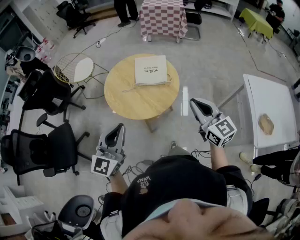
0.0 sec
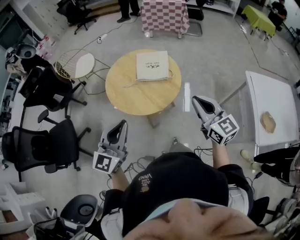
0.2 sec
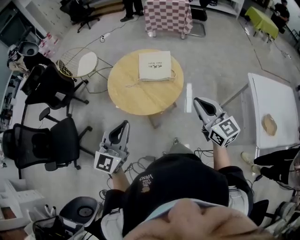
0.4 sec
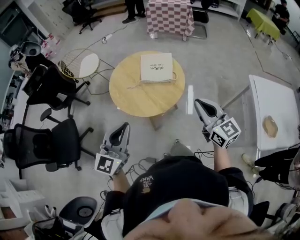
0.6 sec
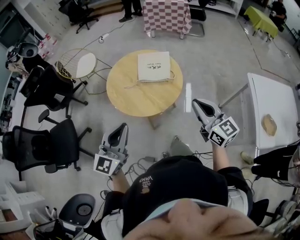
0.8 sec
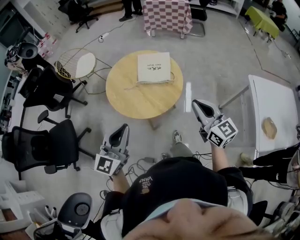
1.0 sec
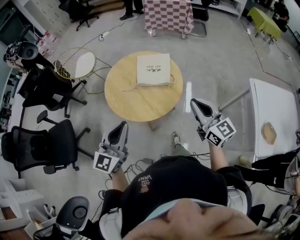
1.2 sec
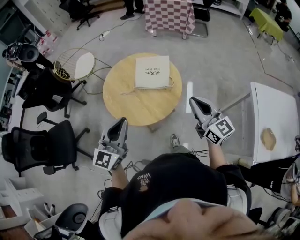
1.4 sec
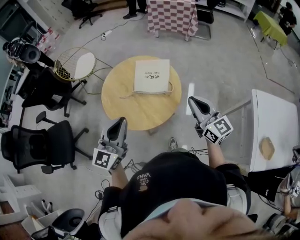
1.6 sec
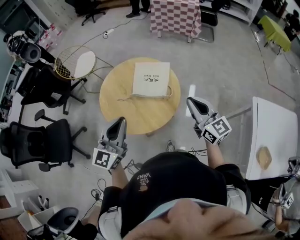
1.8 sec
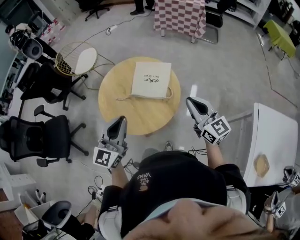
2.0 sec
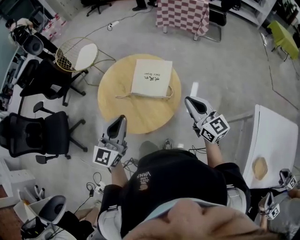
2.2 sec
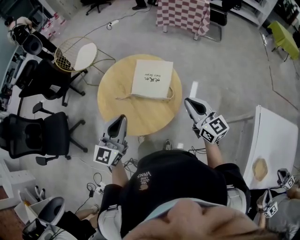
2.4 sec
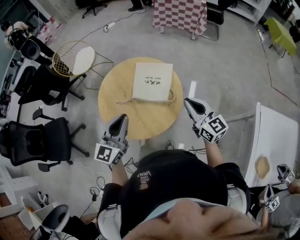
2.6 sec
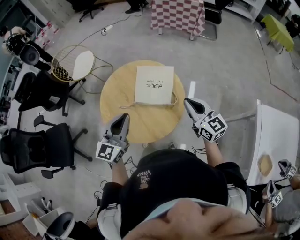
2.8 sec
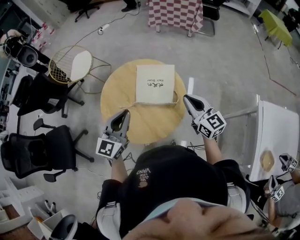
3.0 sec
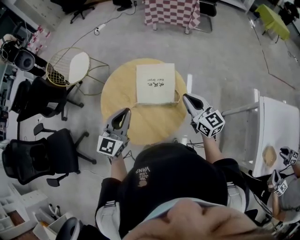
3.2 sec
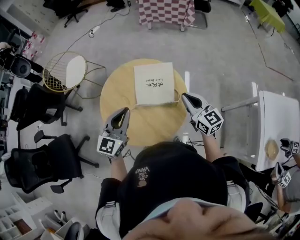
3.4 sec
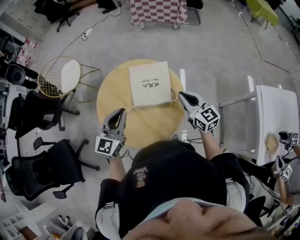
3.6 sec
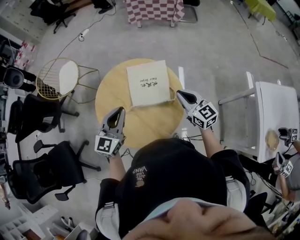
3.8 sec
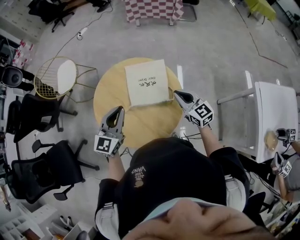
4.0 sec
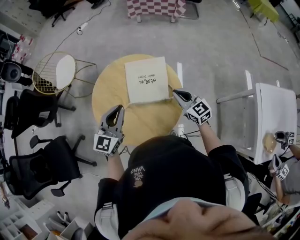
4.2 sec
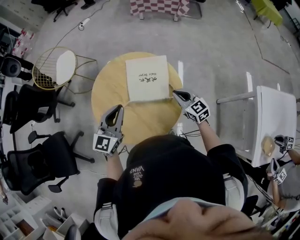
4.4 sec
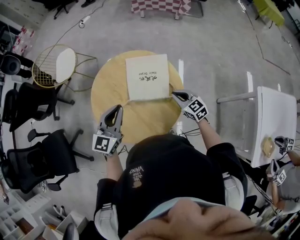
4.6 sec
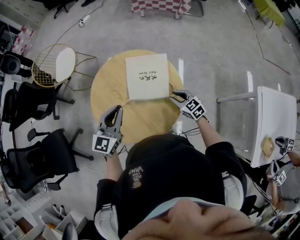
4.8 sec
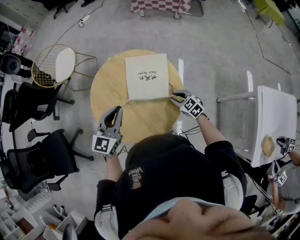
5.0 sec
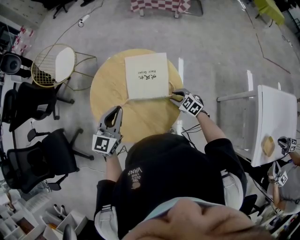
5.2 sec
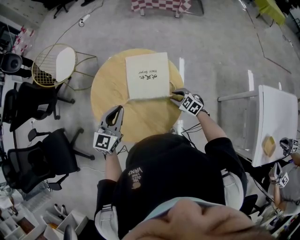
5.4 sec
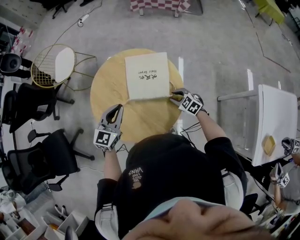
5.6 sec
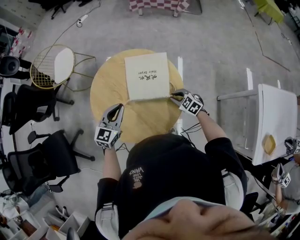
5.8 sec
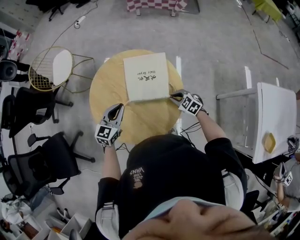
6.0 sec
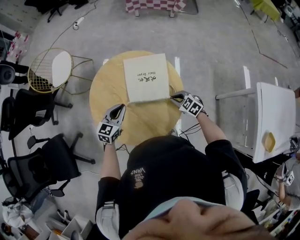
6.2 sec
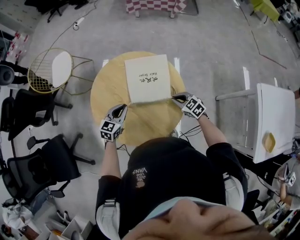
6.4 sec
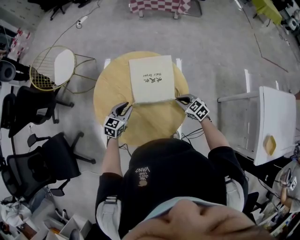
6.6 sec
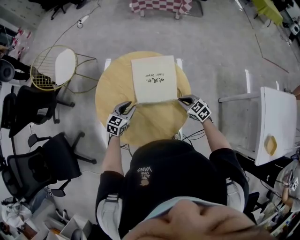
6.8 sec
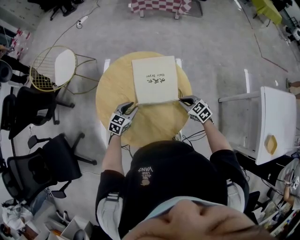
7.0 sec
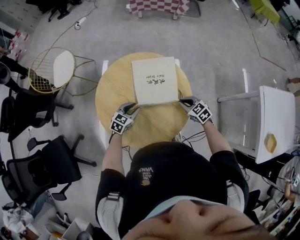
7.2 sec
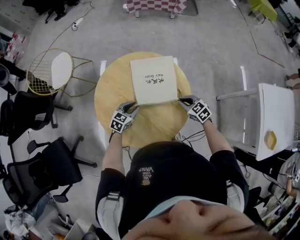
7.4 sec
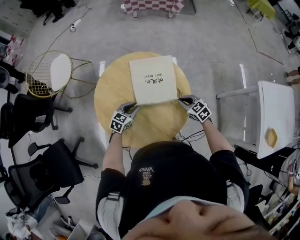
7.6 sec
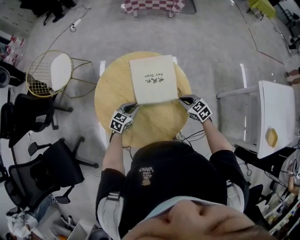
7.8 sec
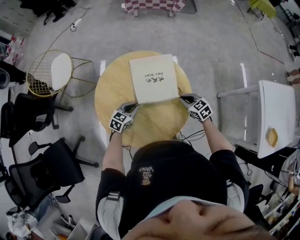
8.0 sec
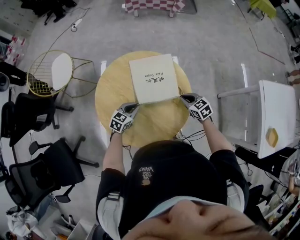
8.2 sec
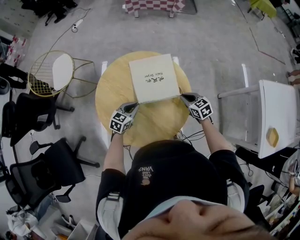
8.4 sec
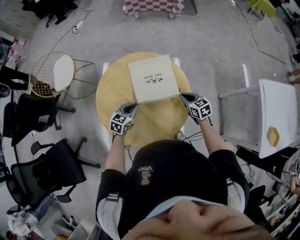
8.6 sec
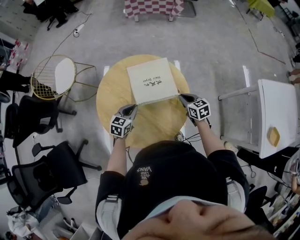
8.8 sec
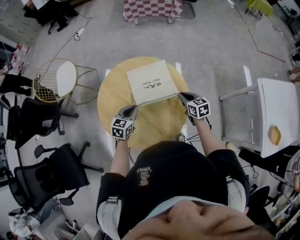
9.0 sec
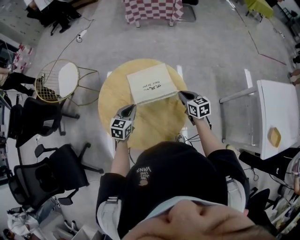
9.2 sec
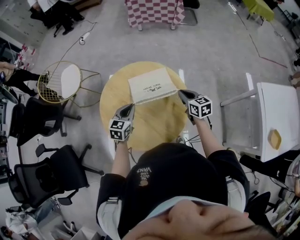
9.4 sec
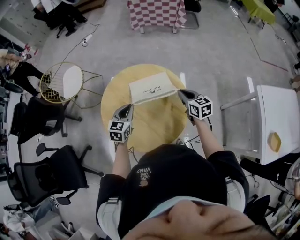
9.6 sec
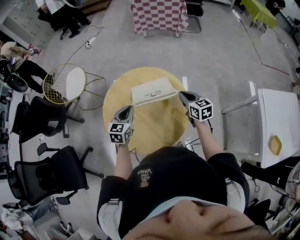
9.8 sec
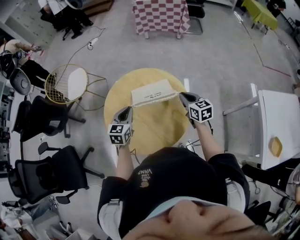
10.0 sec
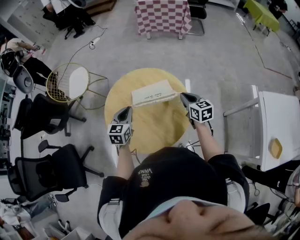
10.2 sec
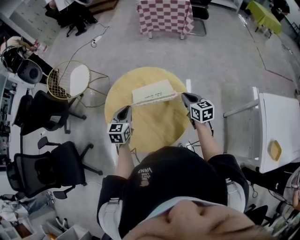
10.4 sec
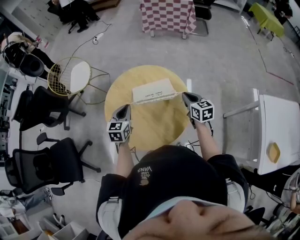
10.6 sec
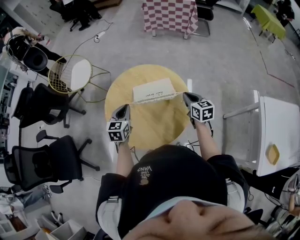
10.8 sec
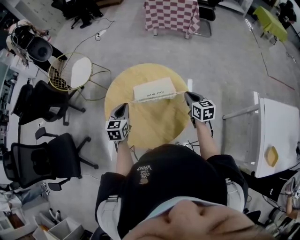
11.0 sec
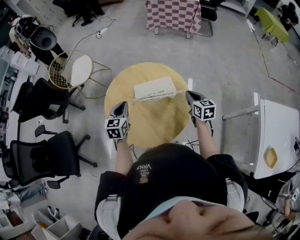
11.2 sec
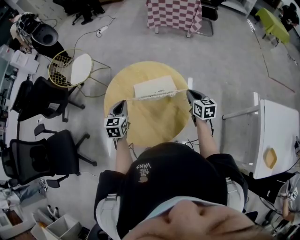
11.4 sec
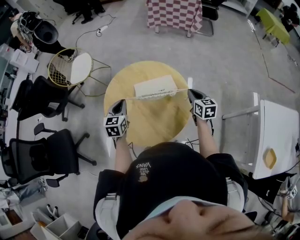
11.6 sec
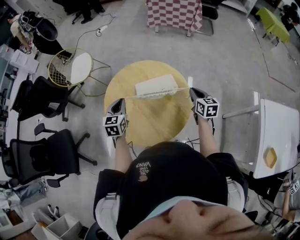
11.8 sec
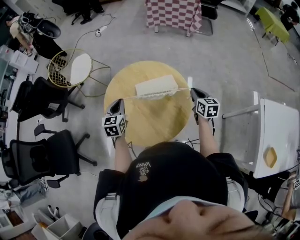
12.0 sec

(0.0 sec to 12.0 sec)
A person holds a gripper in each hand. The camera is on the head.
0.0 sec - 1.6 sec: Both grippers move forward, some 15 cm.
1.6 sec - 3.0 sec: The grippers both shift forward by some 15 cm.
3.0 sec - 4.4 sec: The right gripper heads downward, covering roughly 15 cm; the left gripper moves forward and downward, approximately 10 cm.
4.4 sec - 6.0 sec: Both grippers travel together downward, approximately 15 cm. The right gripper changes its angle by some 30 degrees, and opens and closes again.
6.0 sec - 7.6 sec: The left gripper goes approximately 15 cm downward, and turns by some 20 degrees.
7.6 sec - 9.0 sec: The left gripper travels upward by roughly 10 cm; the right gripper shifts some 5 cm upward, and changes its angle by approximately 30 degrees.
9.0 sec - 10.4 sec: Both grippers travel together upward, about 10 cm. The left gripper turns by some 20 degrees.
10.4 sec - 12.0 sec: The left gripper is displaced to the left by approximately 5 cm.

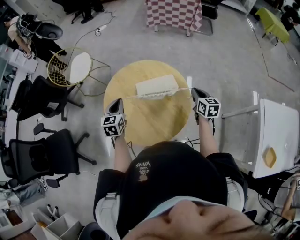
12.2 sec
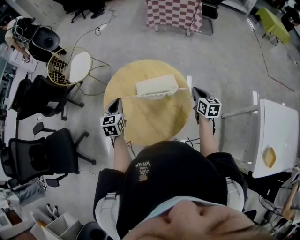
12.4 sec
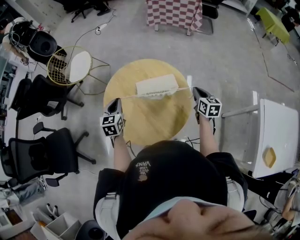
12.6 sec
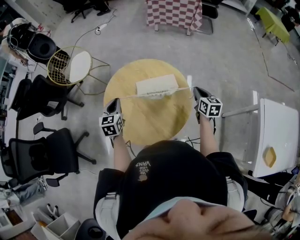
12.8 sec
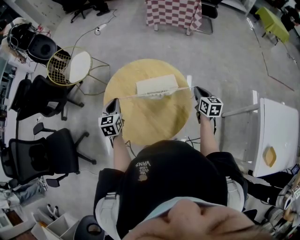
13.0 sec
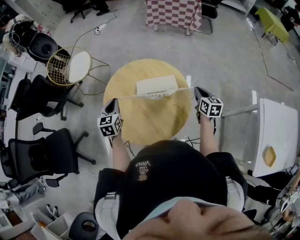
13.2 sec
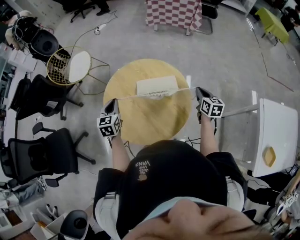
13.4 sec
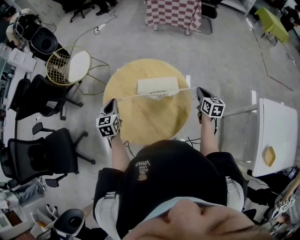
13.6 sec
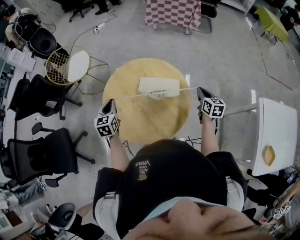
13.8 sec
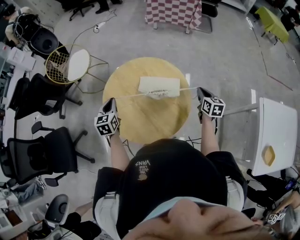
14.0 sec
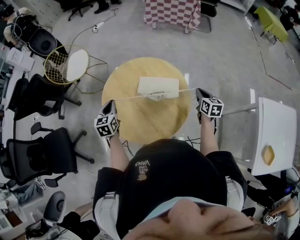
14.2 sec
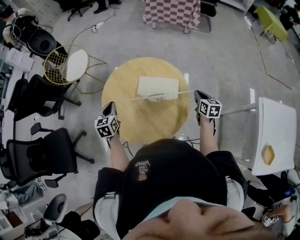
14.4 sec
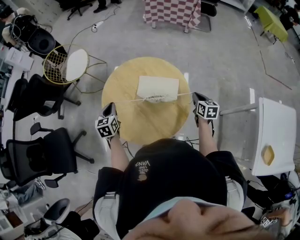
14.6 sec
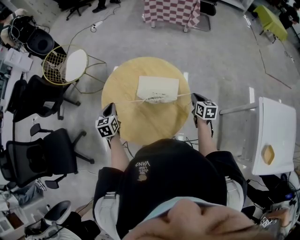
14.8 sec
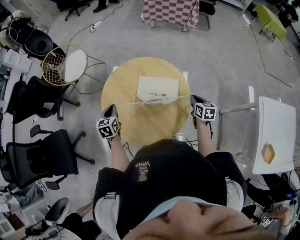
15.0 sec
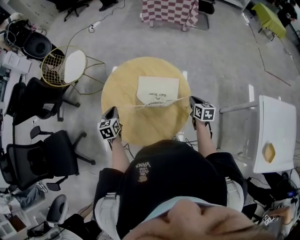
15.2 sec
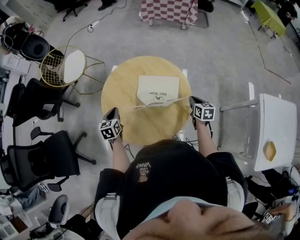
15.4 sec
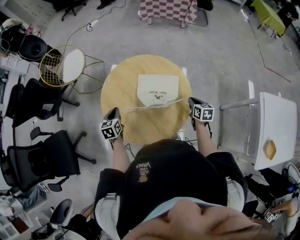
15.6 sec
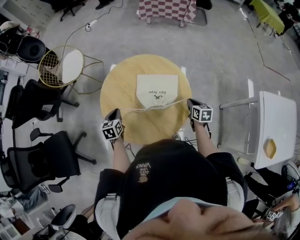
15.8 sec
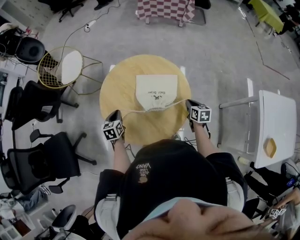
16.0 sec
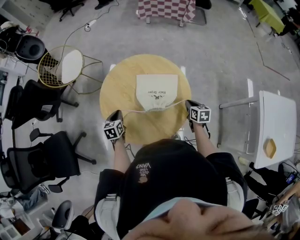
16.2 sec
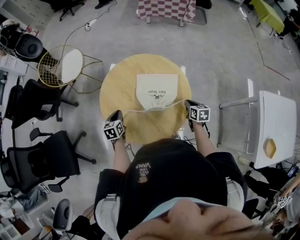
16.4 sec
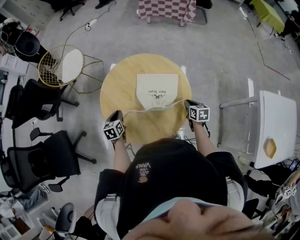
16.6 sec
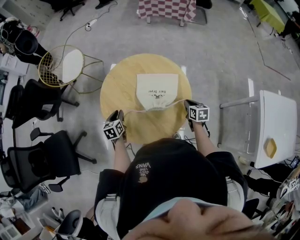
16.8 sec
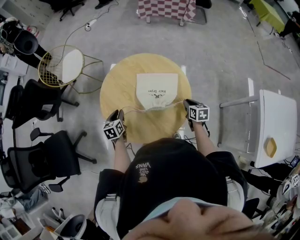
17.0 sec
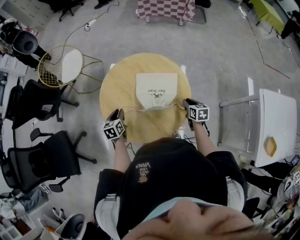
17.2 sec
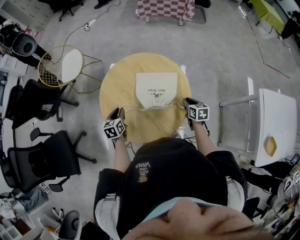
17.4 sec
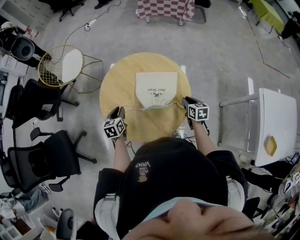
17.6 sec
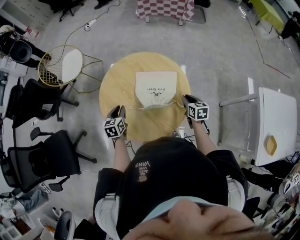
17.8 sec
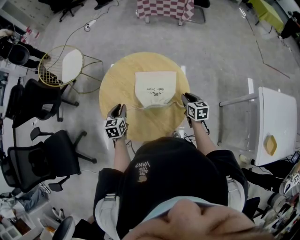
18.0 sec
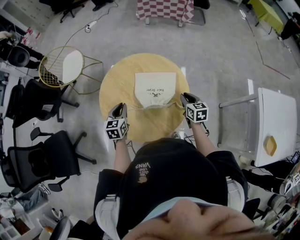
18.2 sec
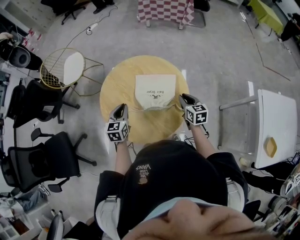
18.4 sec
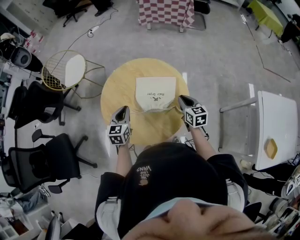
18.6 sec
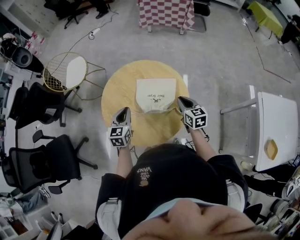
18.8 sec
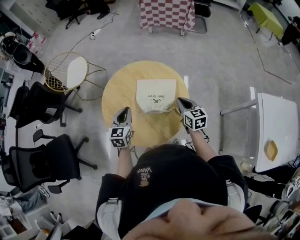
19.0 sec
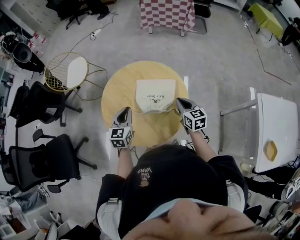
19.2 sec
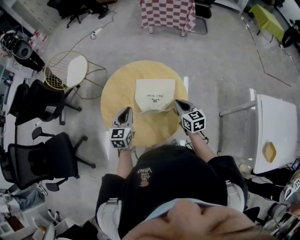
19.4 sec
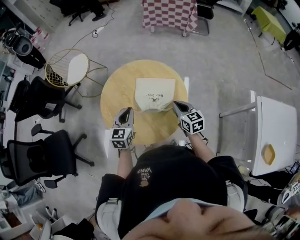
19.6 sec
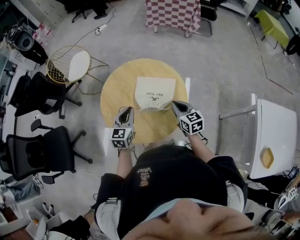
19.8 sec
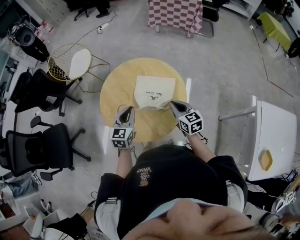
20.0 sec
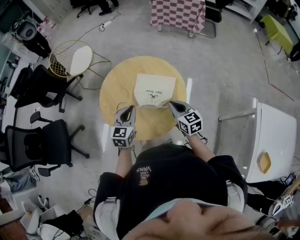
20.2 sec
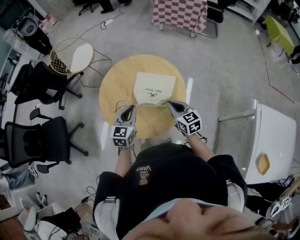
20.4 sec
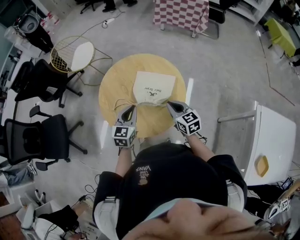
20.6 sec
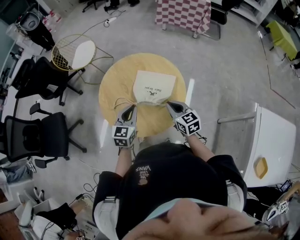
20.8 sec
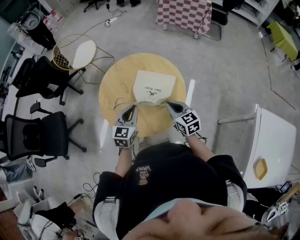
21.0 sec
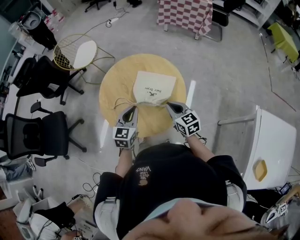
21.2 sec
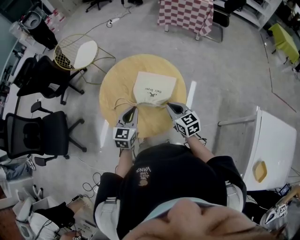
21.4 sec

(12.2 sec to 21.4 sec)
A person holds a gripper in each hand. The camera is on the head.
12.2 sec - 13.8 sec: The grippers make only small movements.
13.8 sec - 15.2 sec: Both grippers travel together downward, some 10 cm.
15.2 sec - 16.8 sec: The left gripper moves downward, about 5 cm. The right gripper shifts by about 5 cm.
16.8 sec - 18.4 sec: The left gripper travels upward and to the right by approximately 10 cm, and changes its angle by approximately 20 degrees. The right gripper heads upward, covering approximately 10 cm.
18.4 sec - 19.8 sec: The right gripper ends up some 5 cm from where it was; the left gripper heads to the right and upward, covering approximately 10 cm.
19.8 sec - 21.4 sec: The left gripper ends up about 5 cm from where it was.

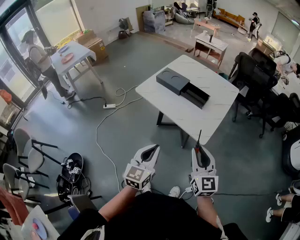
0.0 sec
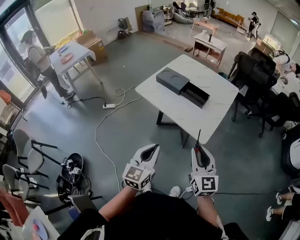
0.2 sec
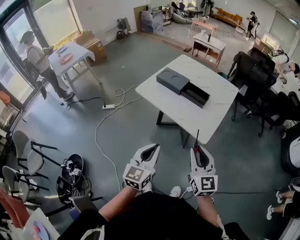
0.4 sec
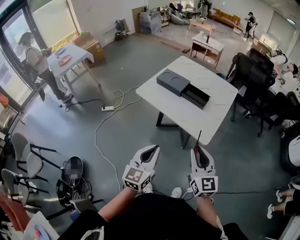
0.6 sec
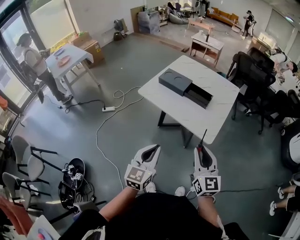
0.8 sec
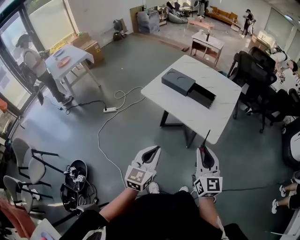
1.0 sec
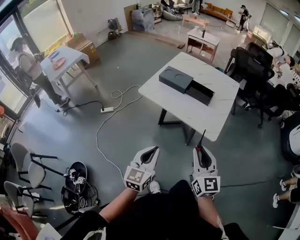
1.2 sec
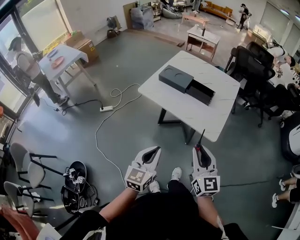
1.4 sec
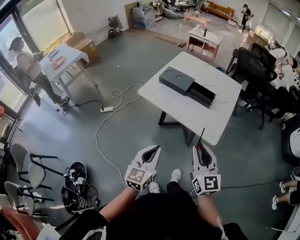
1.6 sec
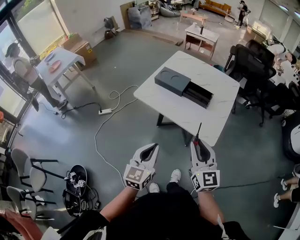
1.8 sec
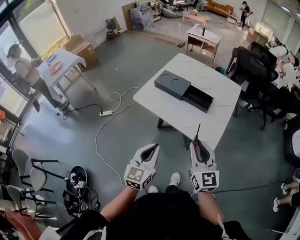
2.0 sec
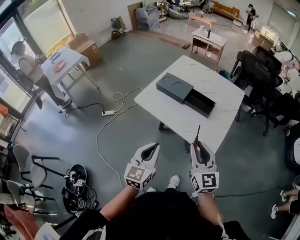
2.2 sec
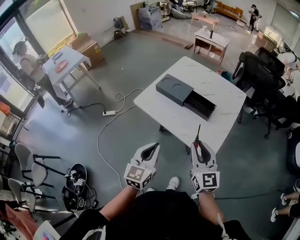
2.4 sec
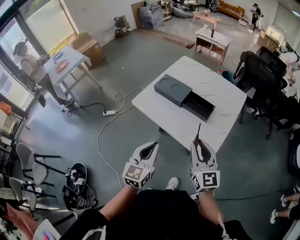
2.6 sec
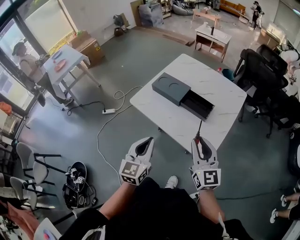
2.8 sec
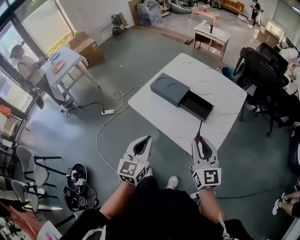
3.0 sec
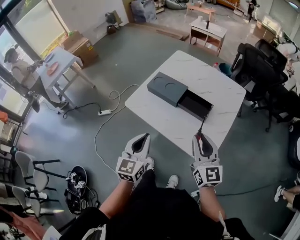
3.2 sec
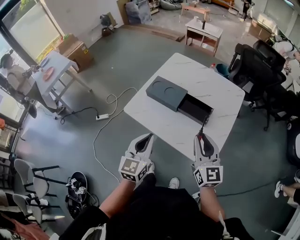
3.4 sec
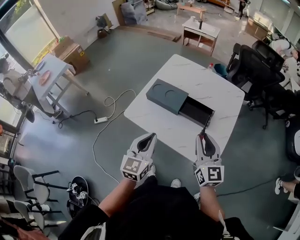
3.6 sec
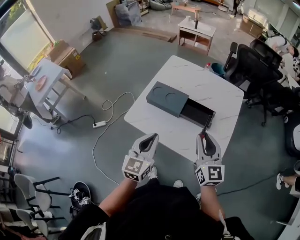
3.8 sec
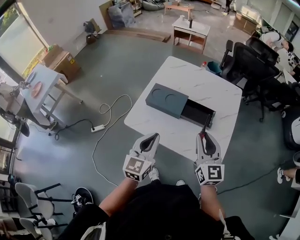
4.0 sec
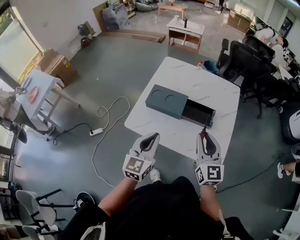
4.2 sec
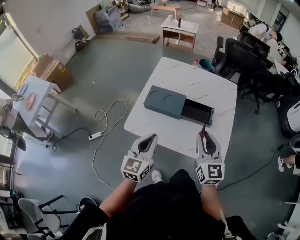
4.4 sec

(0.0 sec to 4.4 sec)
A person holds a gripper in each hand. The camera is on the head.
0.0 sec - 1.4 sec: Both grippers move to the left, some 10 cm.
1.4 sec - 3.0 sec: Both grippers move forward, approximately 20 cm.
3.0 sec - 4.4 sec: Both grippers travel together forward and to the left, roughly 15 cm. The right gripper turns by some 20 degrees. The left gripper turns by some 20 degrees.
